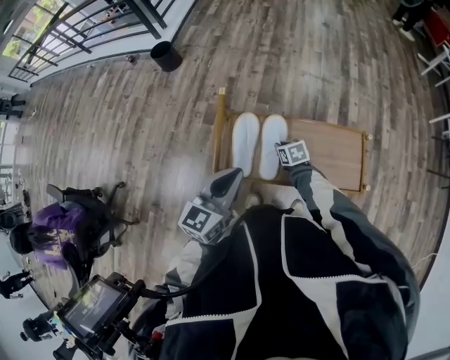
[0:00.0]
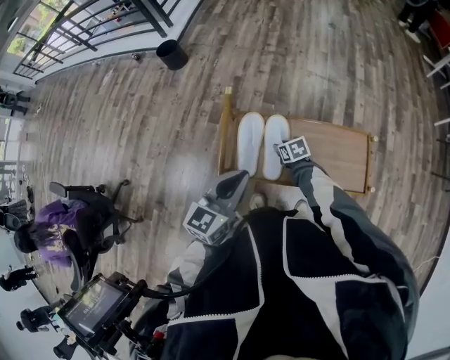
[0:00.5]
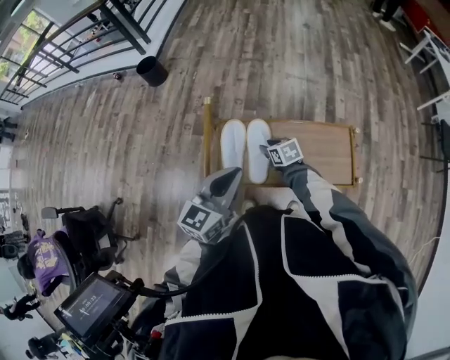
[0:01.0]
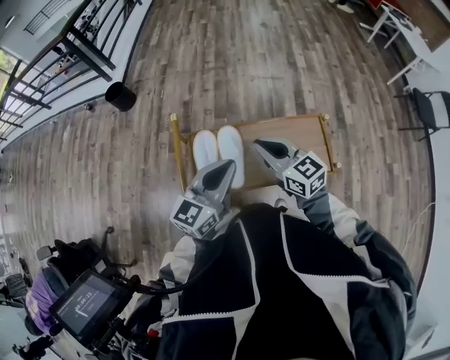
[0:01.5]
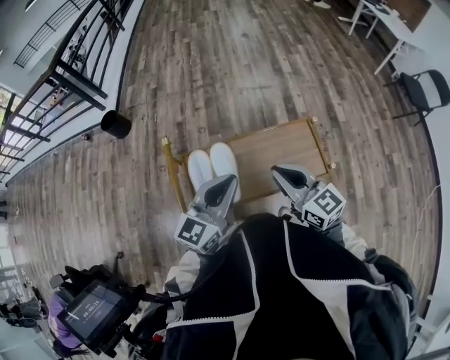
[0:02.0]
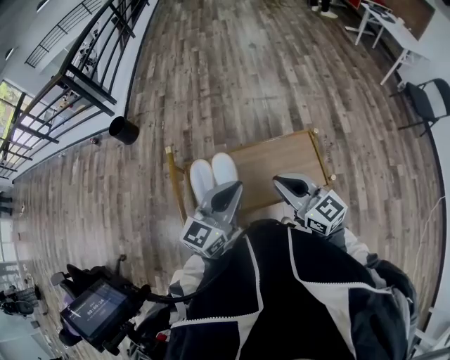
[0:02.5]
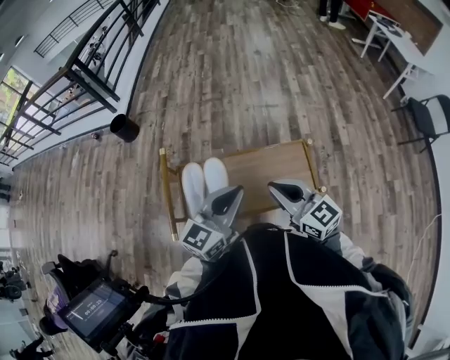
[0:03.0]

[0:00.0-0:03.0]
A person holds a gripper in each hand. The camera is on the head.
0:00.0 to 0:01.5: The left gripper travels to the right by roughly 10 cm. Meanwhile the right gripper travels upward by some 30 cm, tips its fingers upward by about 40 degrees, and opens, then closes once more.
0:01.5 to 0:03.0: The right gripper heads to the right and upward, covering about 10 cm; the left gripper heads to the right, covering about 5 cm.

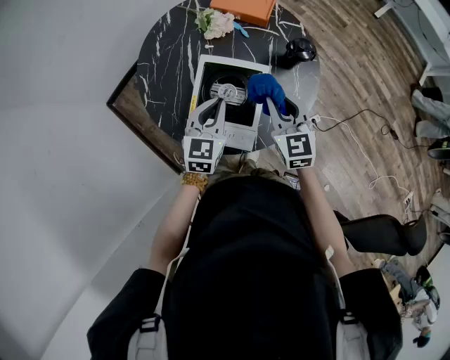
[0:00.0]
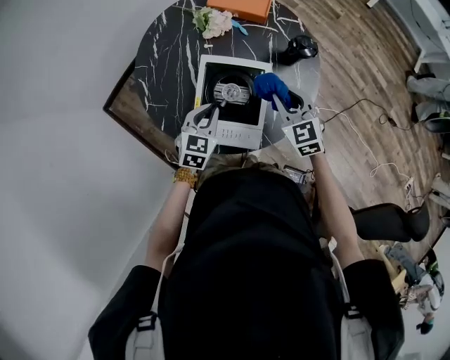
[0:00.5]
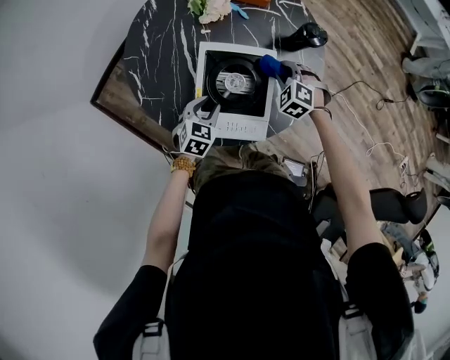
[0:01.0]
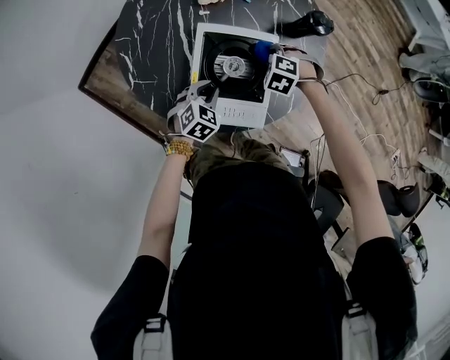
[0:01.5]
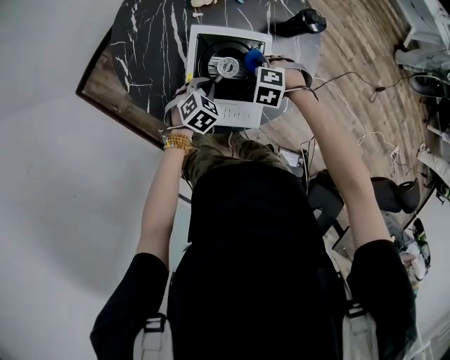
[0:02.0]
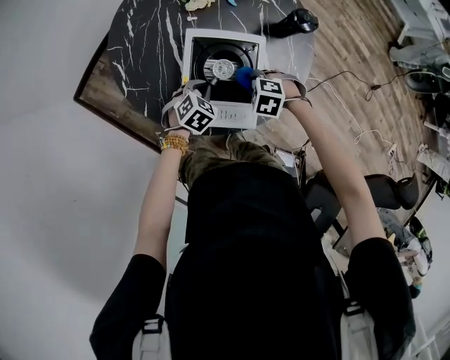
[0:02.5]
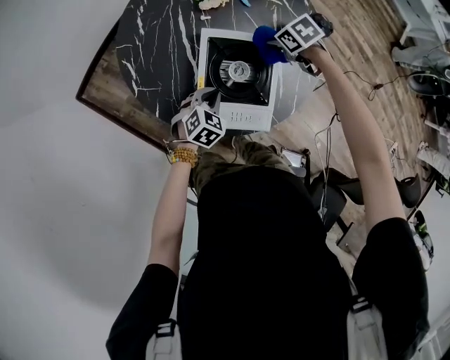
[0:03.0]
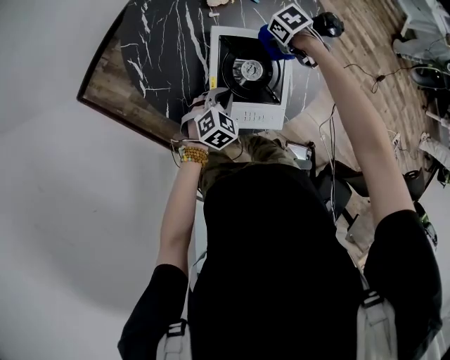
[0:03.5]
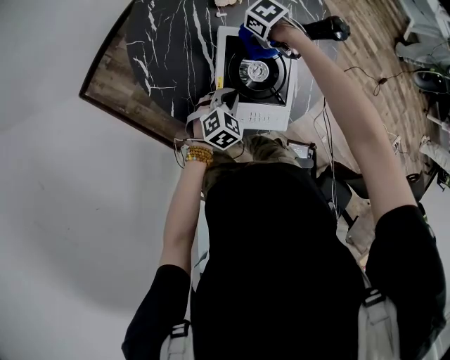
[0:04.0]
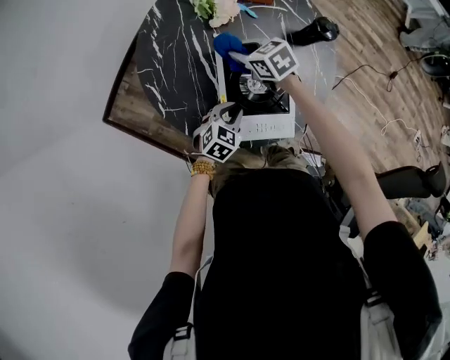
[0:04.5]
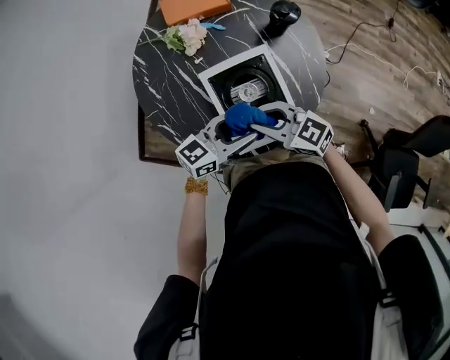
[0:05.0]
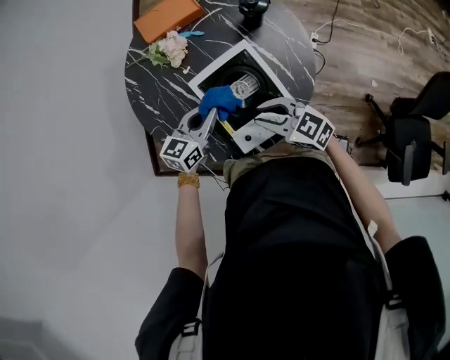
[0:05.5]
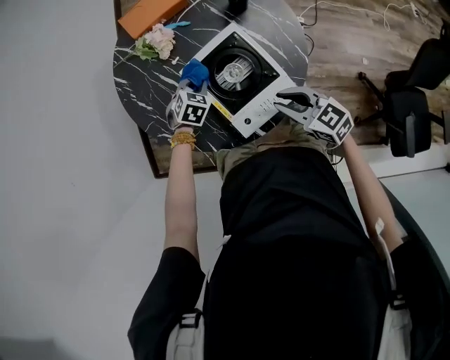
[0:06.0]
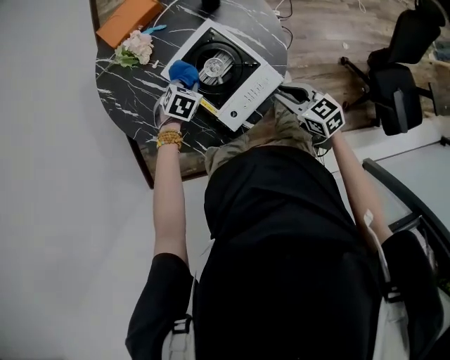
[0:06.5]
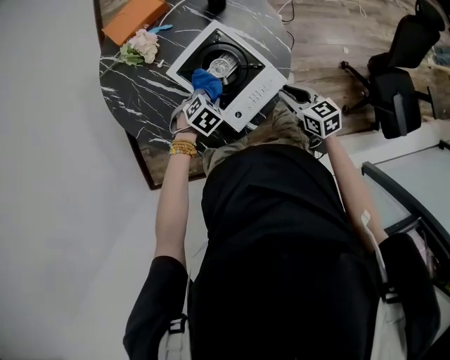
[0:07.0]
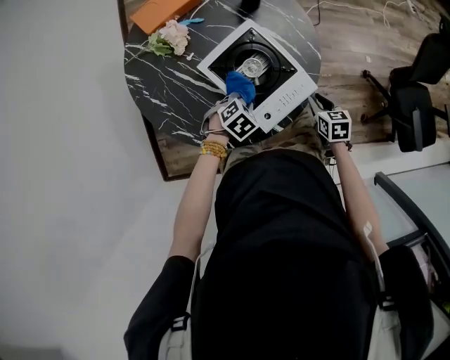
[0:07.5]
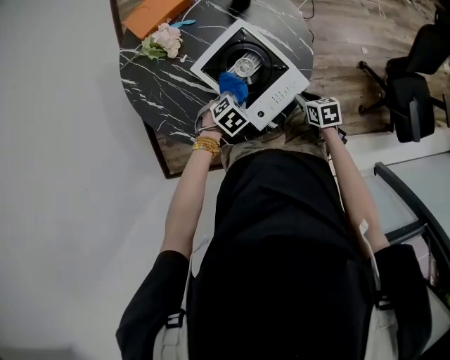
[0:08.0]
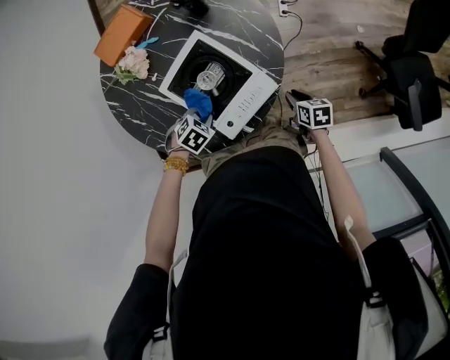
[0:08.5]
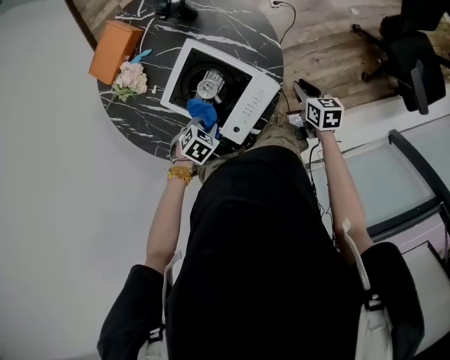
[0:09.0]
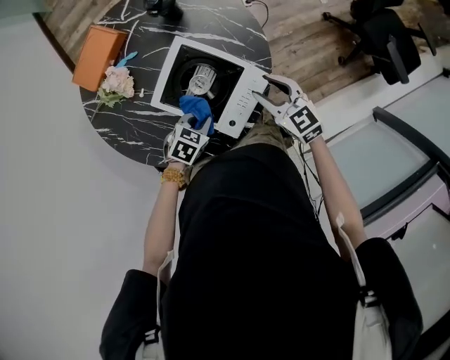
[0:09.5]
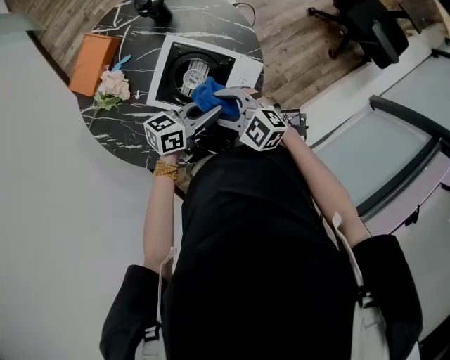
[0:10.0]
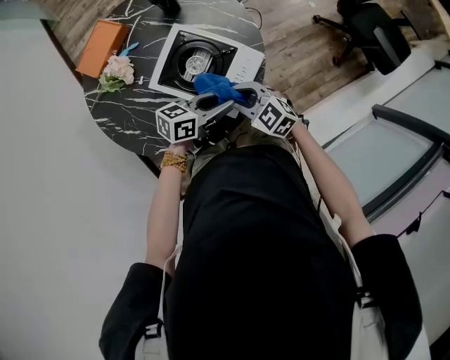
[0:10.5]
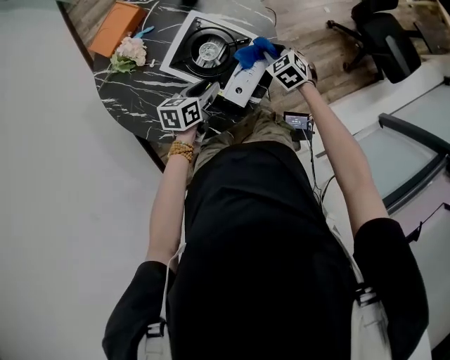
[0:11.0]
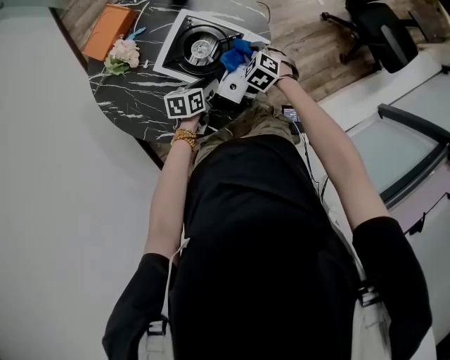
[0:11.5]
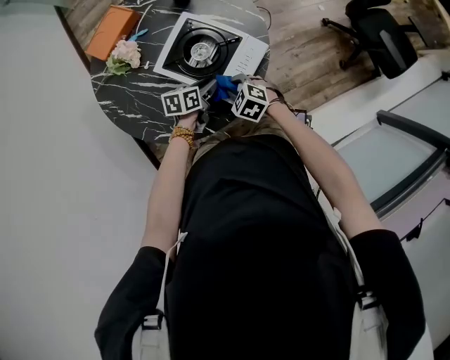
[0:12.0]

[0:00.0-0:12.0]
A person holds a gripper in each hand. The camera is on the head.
0:00.0 to 0:02.0: The grippers both shift downward by roughly 20 cm. The left gripper angles its fingers downward, by roughly 30 degrees, and opens, then closes once more, while the right gripper tips its fingers downward by about 60 degrees.
0:02.0 to 0:04.0: The right gripper shifts by approximately 15 cm, and rotates around the line of its fingers by roughly 50 degrees, clockwise from behind.
0:04.0 to 0:06.0: The left gripper travels upward and back again, about 20 cm each way, rotates approximately 30 degrees, and opens, then closes again. The right gripper moves about 30 cm, and tilts its fingers roughly 50 degrees upward.
0:06.0 to 0:08.0: The left gripper shifts by some 15 cm, and rotates roughly 30 degrees, while the right gripper travels downward by roughly 15 cm, and points its fingers approximately 30 degrees further downward.
0:08.0 to 0:10.0: The right gripper moves roughly 20 cm, rotates around the line of its fingers by approximately 40 degrees, counterclockwise from behind, and opens; the left gripper is displaced upward by about 10 cm, and angles its fingers upward, by about 50 degrees.
0:10.0 to 0:12.0: Both grippers move downward, roughly 10 cm. The right gripper rotates some 30 degrees, and closes. The left gripper rotates approximately 40 degrees, and opens its fingers.

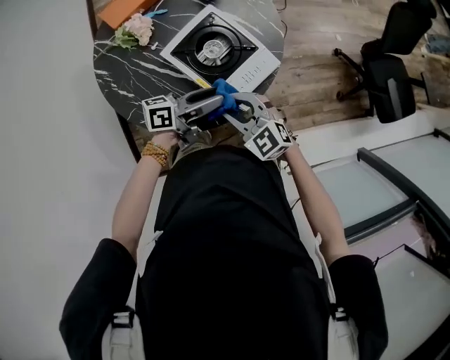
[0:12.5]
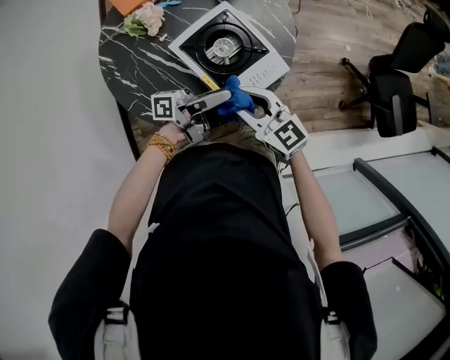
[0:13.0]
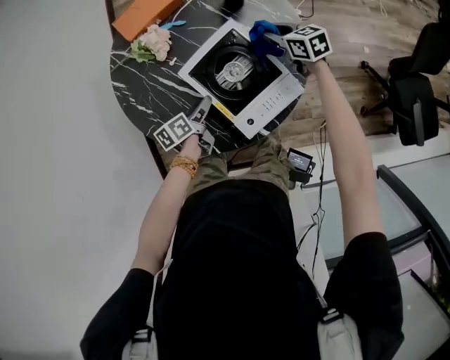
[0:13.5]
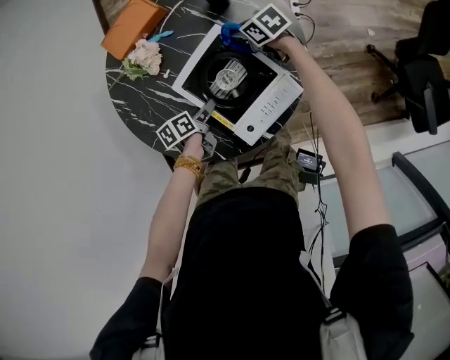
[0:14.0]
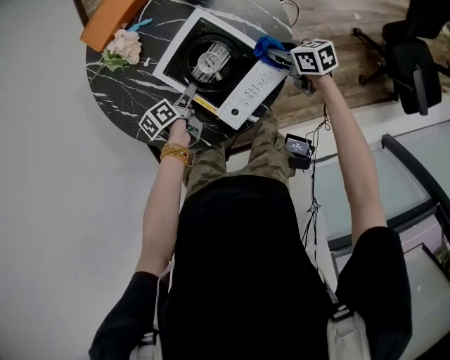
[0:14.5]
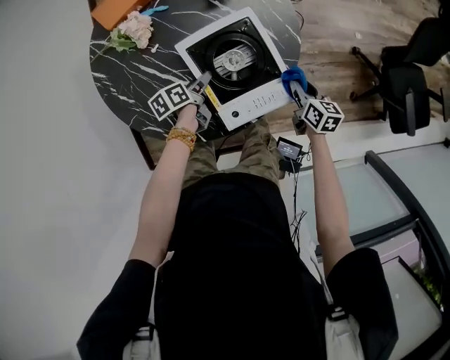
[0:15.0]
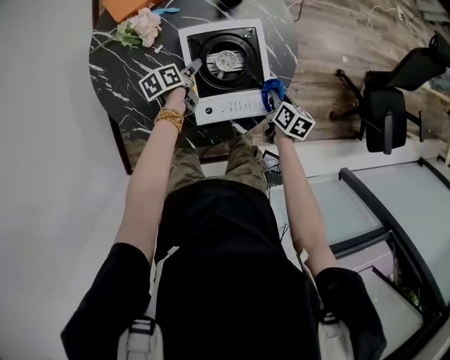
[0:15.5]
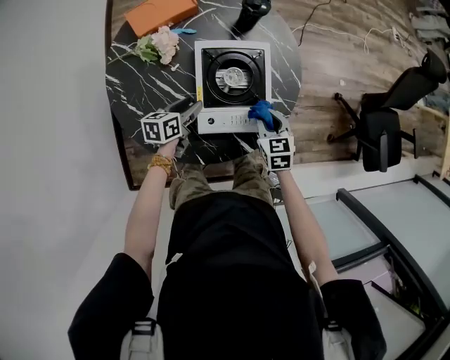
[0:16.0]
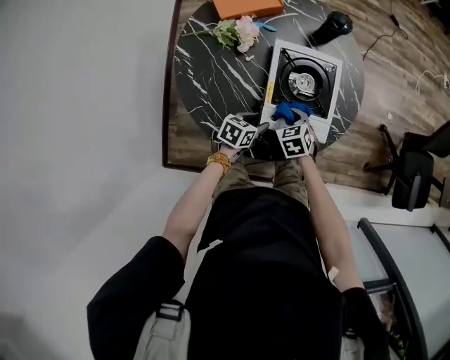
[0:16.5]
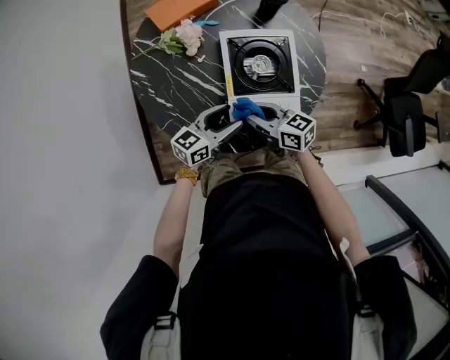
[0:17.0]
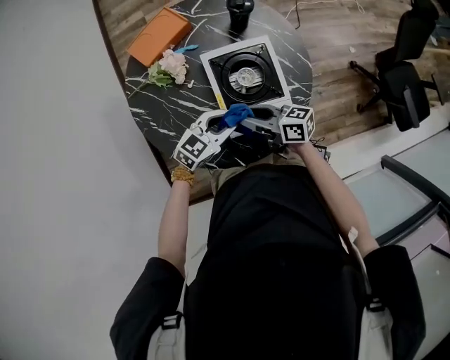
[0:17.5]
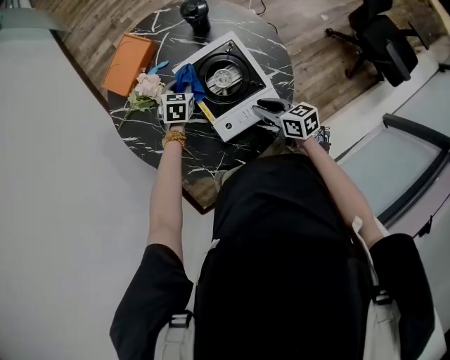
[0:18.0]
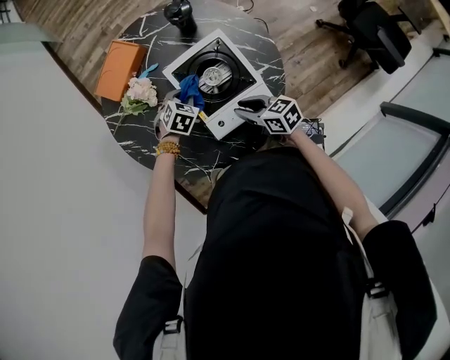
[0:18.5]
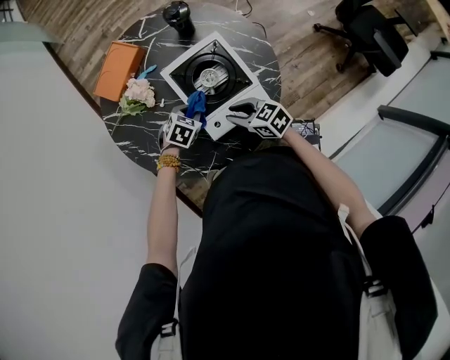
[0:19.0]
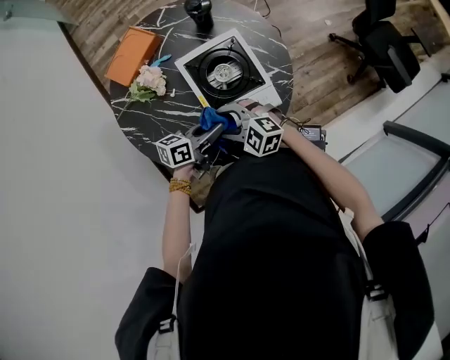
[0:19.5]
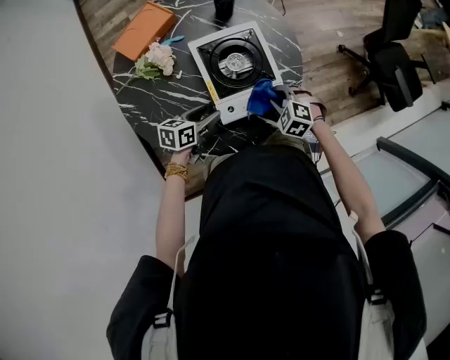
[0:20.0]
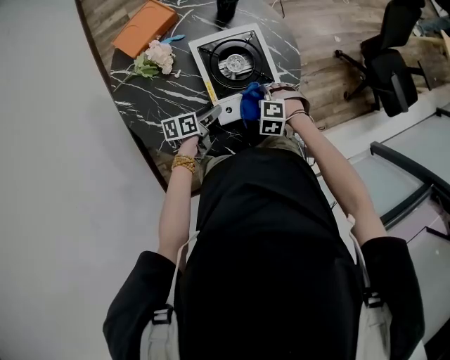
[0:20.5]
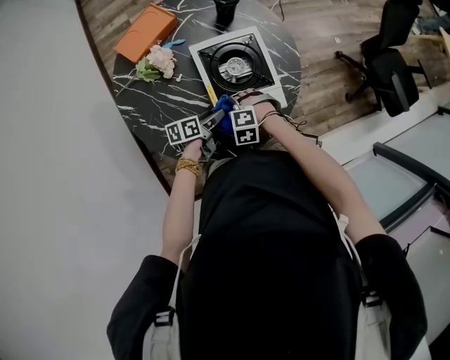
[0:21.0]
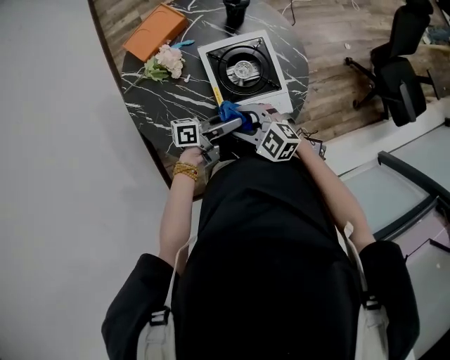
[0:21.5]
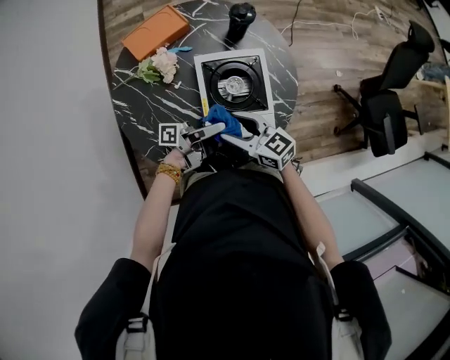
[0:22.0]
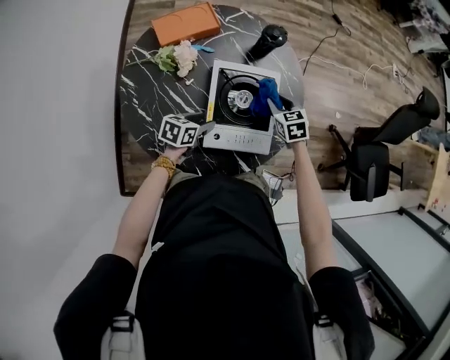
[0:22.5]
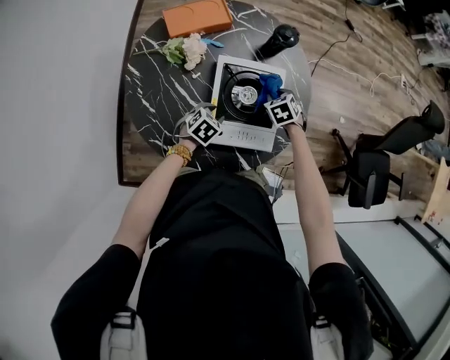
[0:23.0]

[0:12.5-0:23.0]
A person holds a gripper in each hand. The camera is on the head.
0:12.5 to 0:14.5: The left gripper shifts approximately 25 cm downward, forward and to the left, tips its fingers downward by some 40 degrees, and closes, then opens again; the right gripper moves forward, to the right and downward, some 30 cm, and rotates around the line of its fingers by about 60 degrees, clockwise from behind.
0:14.5 to 0:16.5: The left gripper travels backward by about 10 cm, and changes its angle by roughly 40 degrees. The right gripper travels to the left and backward by approximately 25 cm, and turns by some 50 degrees.
0:16.5 to 0:19.0: The left gripper goes upward and returns, roughly 15 cm each way, rolls clockwise, seen from behind, by roughly 50 degrees, and closes its fingers. Meanwhile the right gripper shifts roughly 5 cm upward, and rotates approximately 40 degrees.
0:19.0 to 0:21.0: The left gripper travels upward and back again, some 10 cm each way, twists approximately 70 degrees counterclockwise, seen from behind, and opens its fingers, while the right gripper heads downward, covering approximately 10 cm, twists approximately 70 degrees counterclockwise, seen from behind, and opens and closes again.
0:21.0 to 0:23.0: The left gripper reaches roughly 15 cm upward, then returns, twists about 40 degrees clockwise, seen from behind, and closes; the right gripper travels upward and back again, roughly 15 cm each way, changes its angle by roughly 40 degrees, and opens and closes again.
